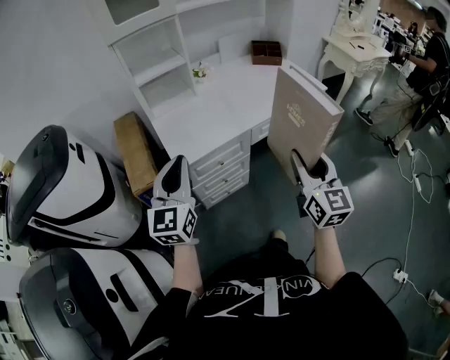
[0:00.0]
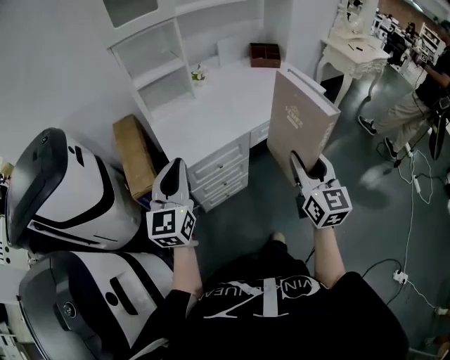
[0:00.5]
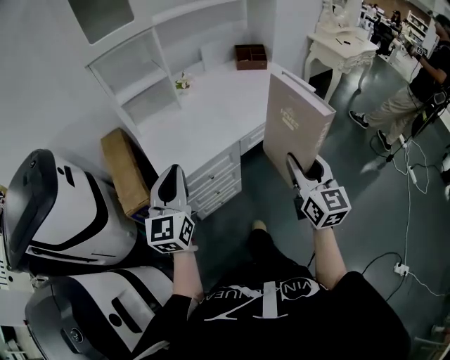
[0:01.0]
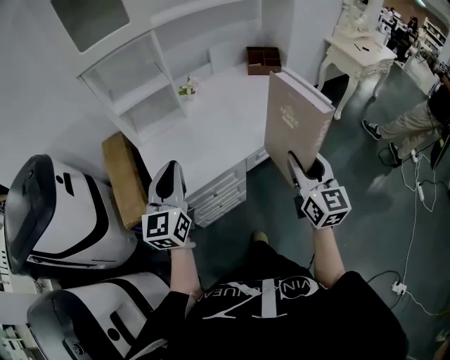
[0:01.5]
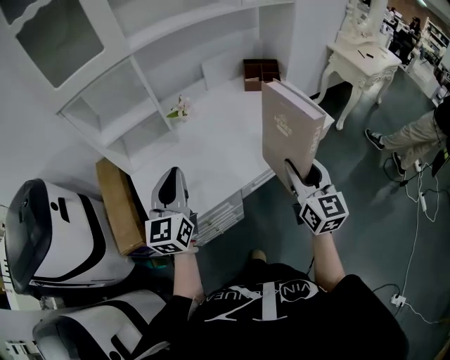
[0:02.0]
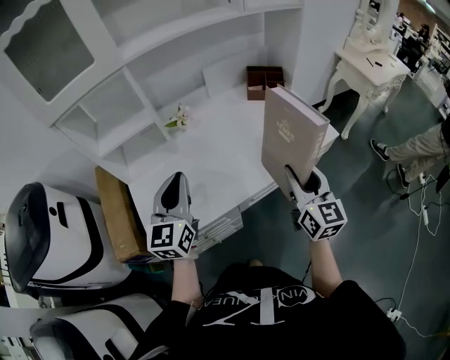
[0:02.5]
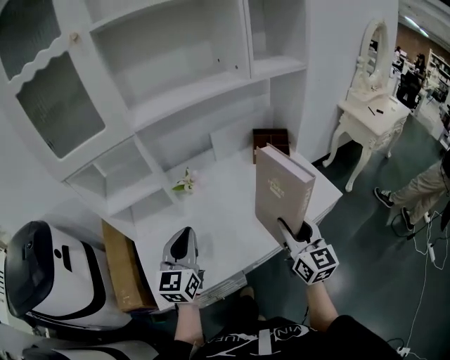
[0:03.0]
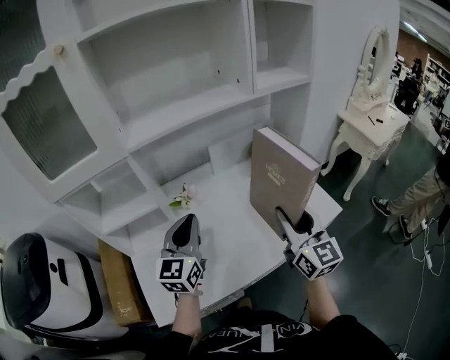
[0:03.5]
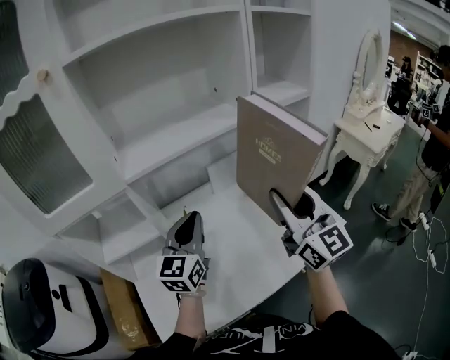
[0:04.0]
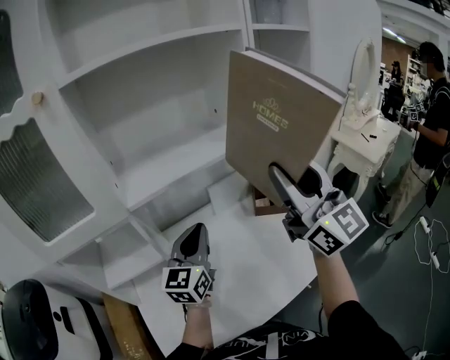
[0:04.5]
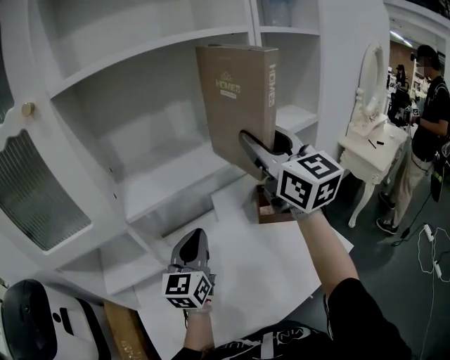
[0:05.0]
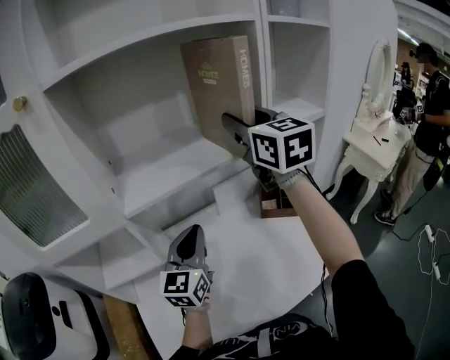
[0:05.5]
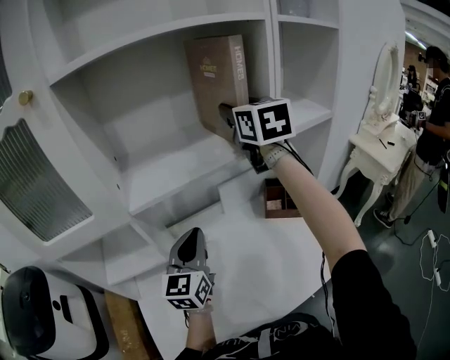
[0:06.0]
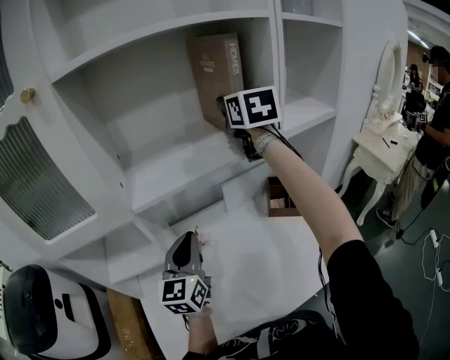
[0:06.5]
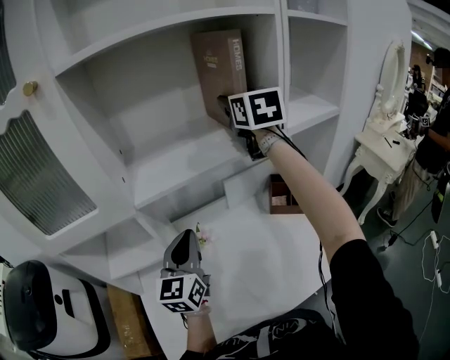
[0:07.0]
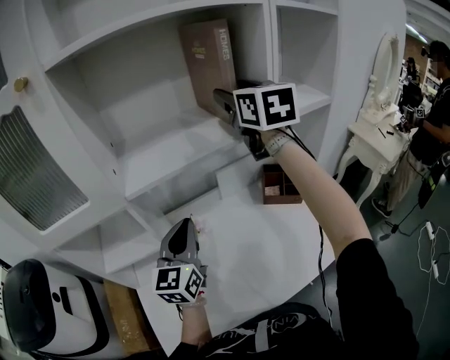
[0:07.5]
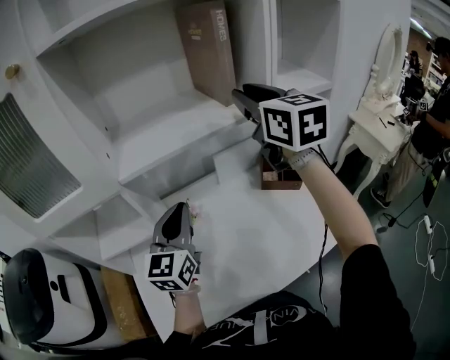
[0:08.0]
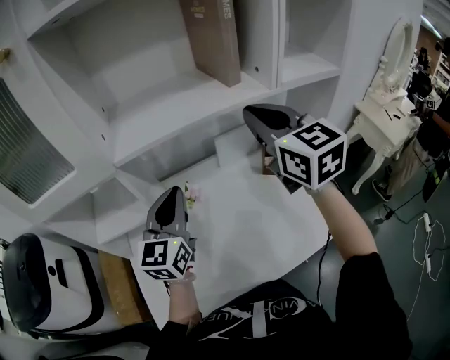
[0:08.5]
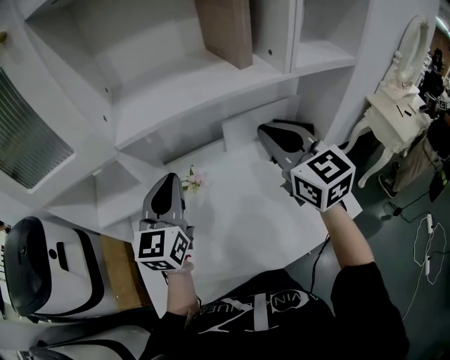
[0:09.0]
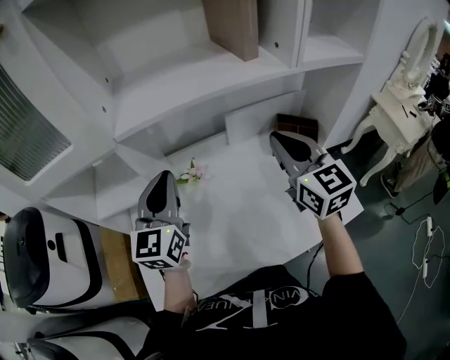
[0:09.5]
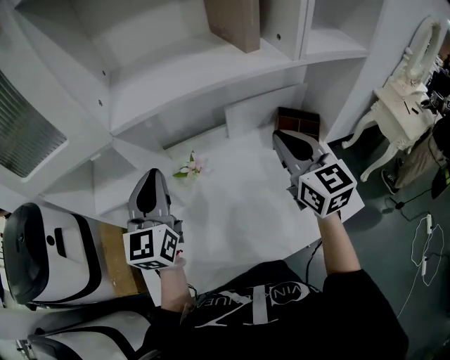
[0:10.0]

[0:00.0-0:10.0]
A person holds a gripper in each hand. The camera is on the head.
0:00.0 to 0:02.0: Both grippers move forward, some 30 cm.
0:02.0 to 0:04.0: The right gripper is displaced forward and upward by some 35 cm, and rotates some 20 degrees, while the left gripper is displaced forward by some 30 cm.
0:04.0 to 0:06.0: The left gripper is displaced forward by some 5 cm. The right gripper travels forward and upward by roughly 30 cm, and turns by about 20 degrees.
0:06.0 to 0:08.0: The right gripper moves backward, roughly 5 cm.
0:08.0 to 0:10.0: The left gripper moves to the left, some 5 cm, while the right gripper heads downward, covering some 20 cm, and closes.

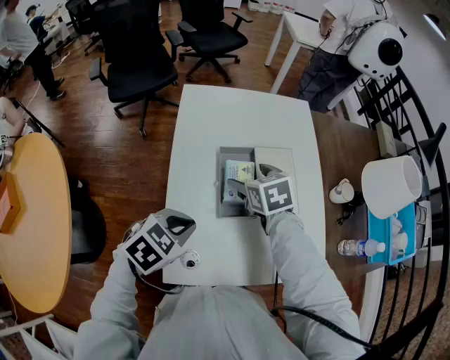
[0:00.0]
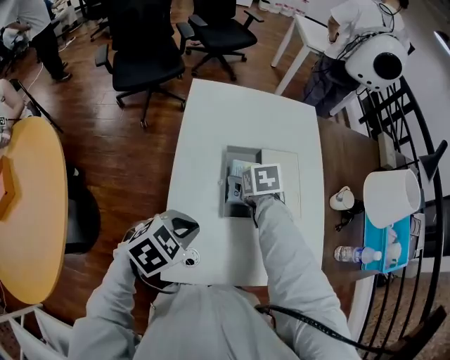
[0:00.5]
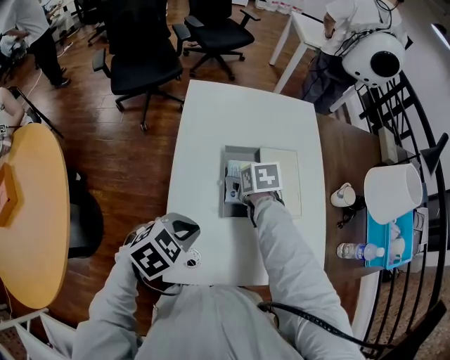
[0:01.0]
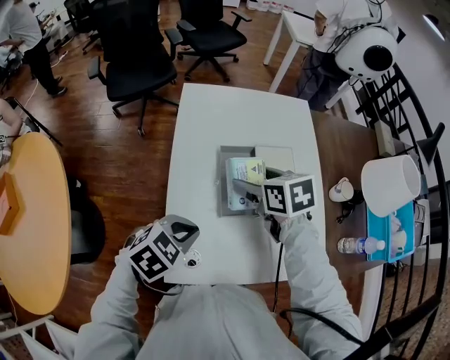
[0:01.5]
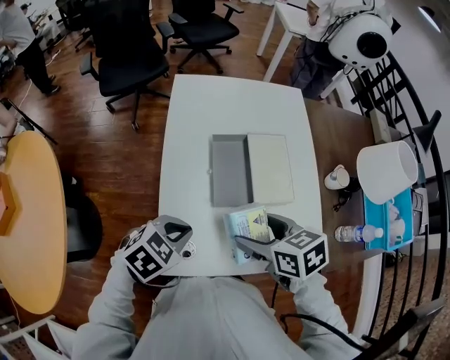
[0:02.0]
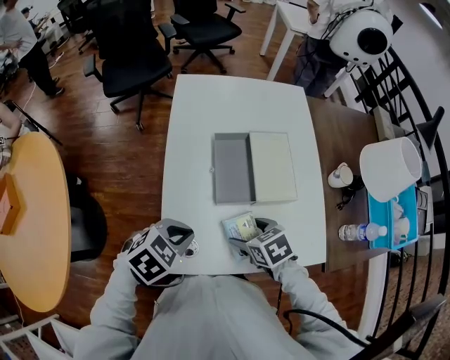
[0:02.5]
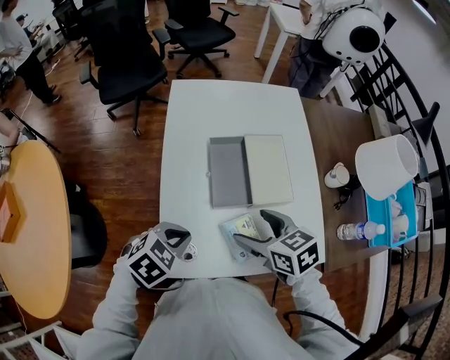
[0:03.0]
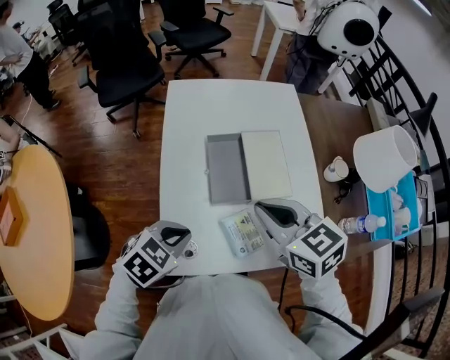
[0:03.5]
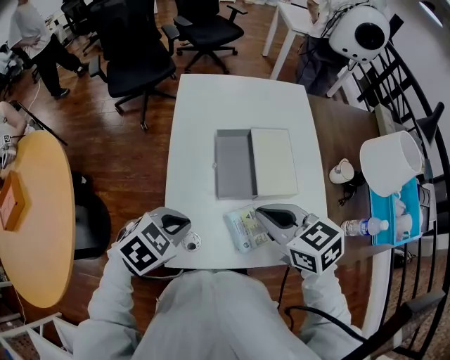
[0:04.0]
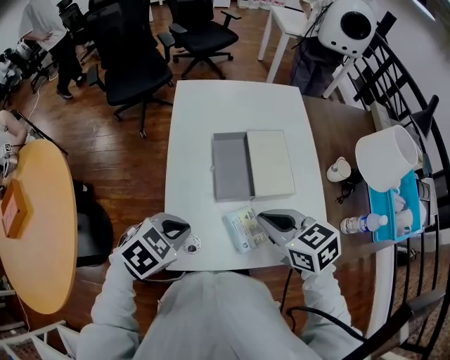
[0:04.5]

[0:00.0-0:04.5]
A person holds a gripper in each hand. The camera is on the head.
0:00.0 to 0:02.0: The right gripper moves backward, about 15 cm.
0:02.0 to 0:04.5: The right gripper moves up and down over some 20 cm, changing direction 2 times, and closes its fingers.

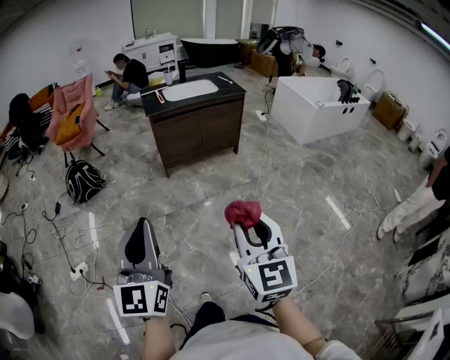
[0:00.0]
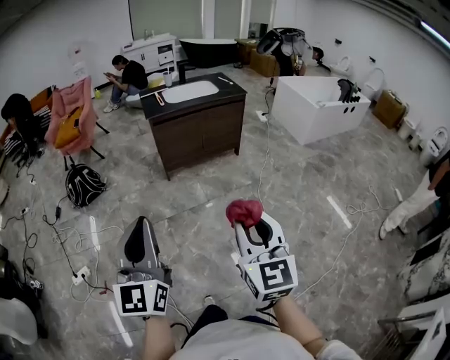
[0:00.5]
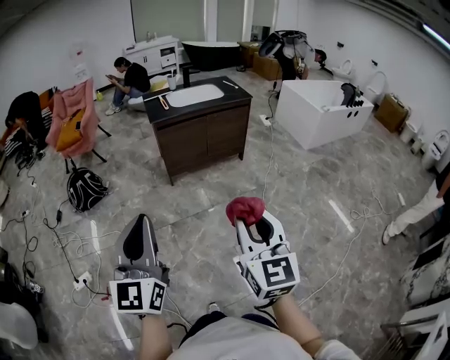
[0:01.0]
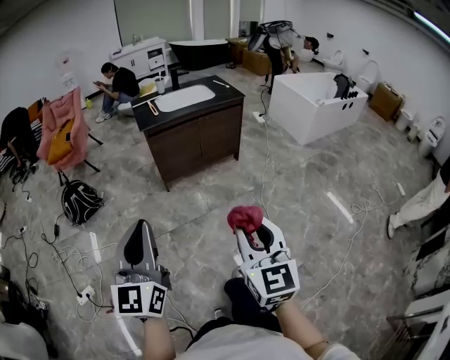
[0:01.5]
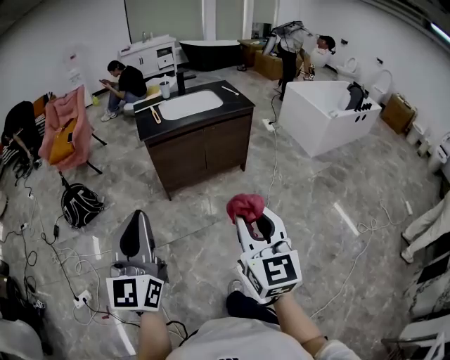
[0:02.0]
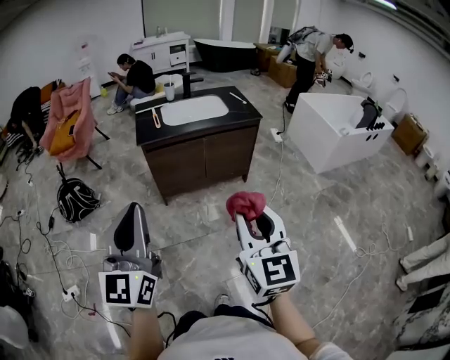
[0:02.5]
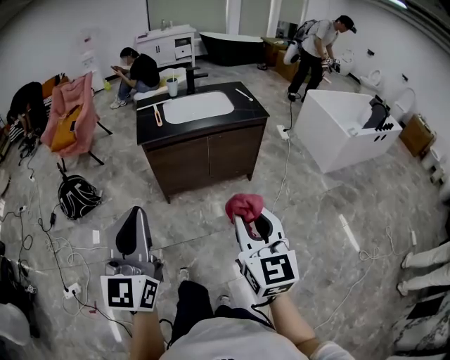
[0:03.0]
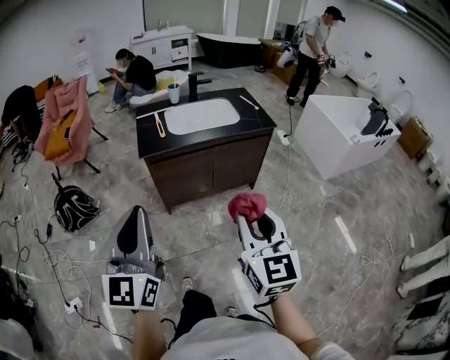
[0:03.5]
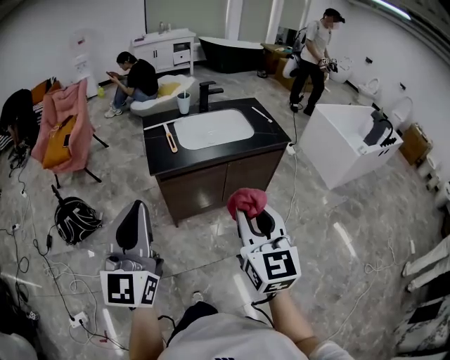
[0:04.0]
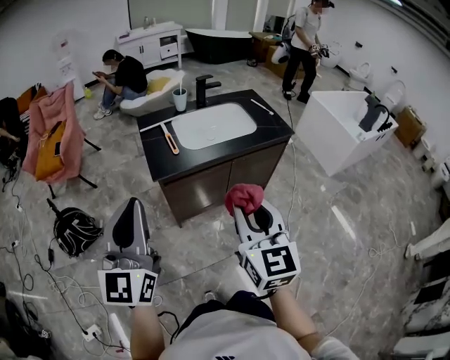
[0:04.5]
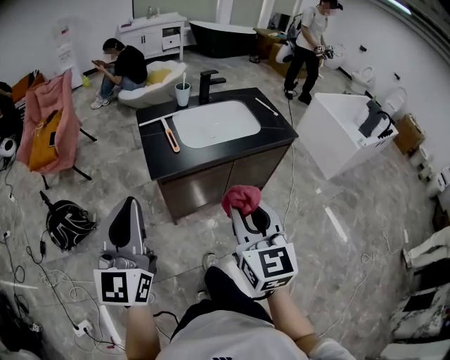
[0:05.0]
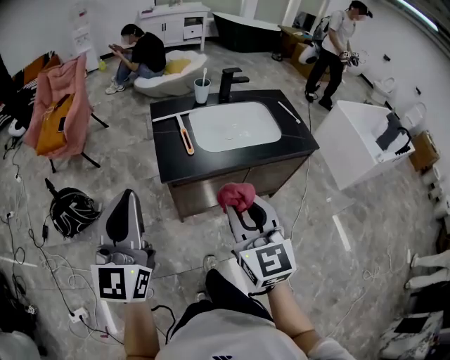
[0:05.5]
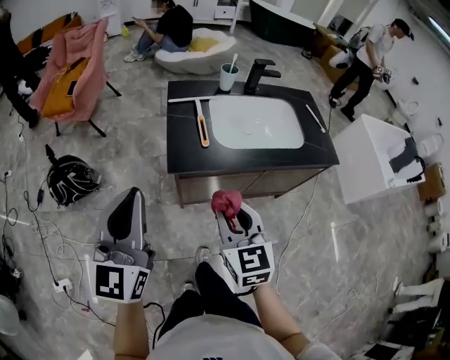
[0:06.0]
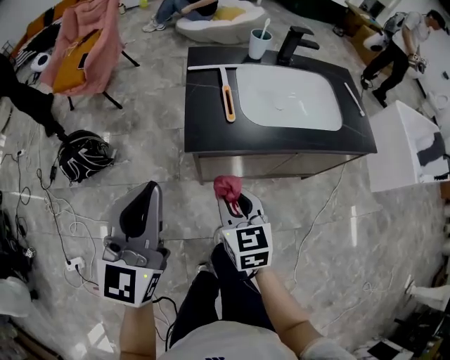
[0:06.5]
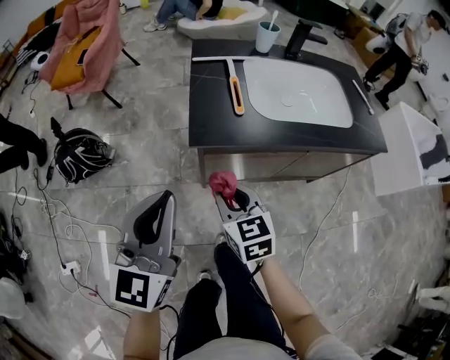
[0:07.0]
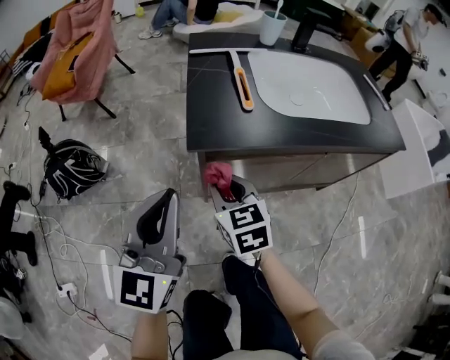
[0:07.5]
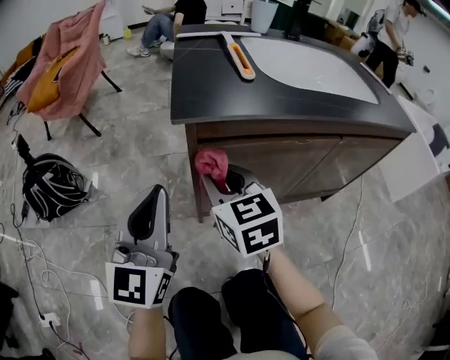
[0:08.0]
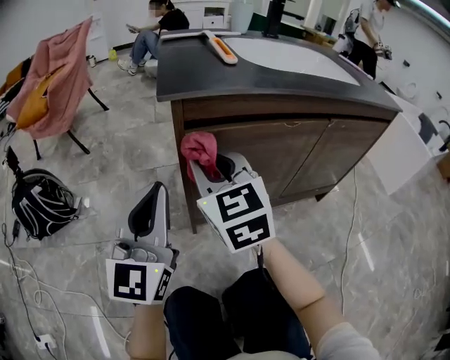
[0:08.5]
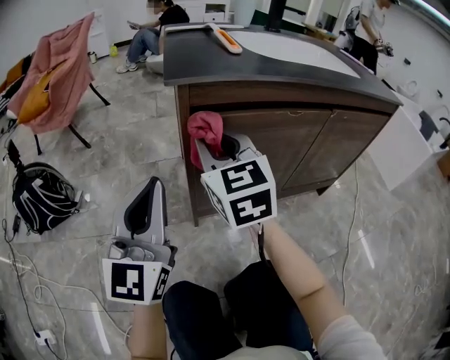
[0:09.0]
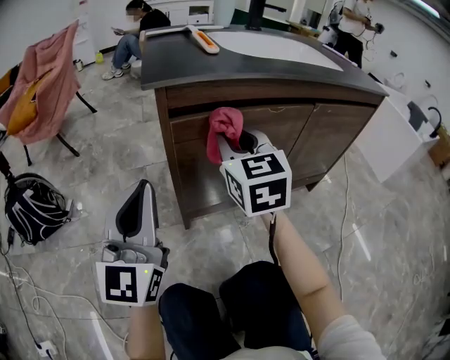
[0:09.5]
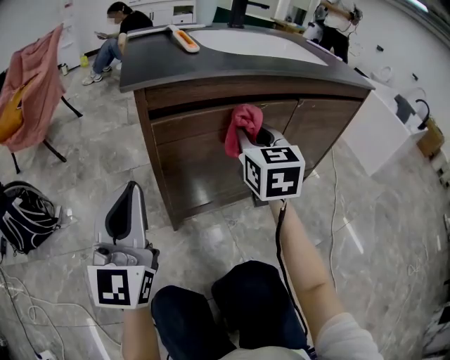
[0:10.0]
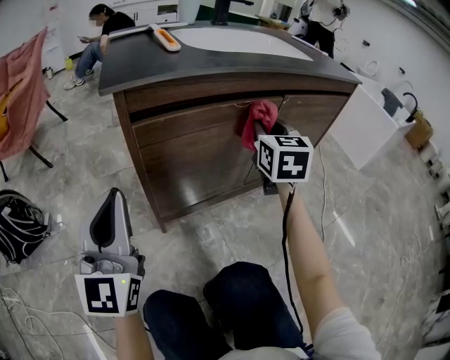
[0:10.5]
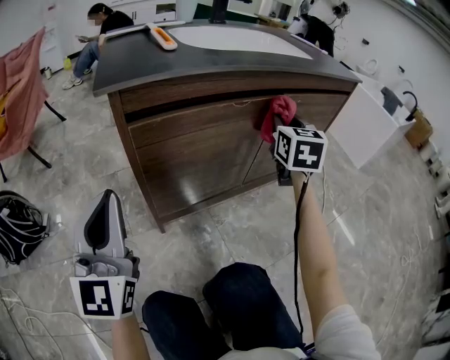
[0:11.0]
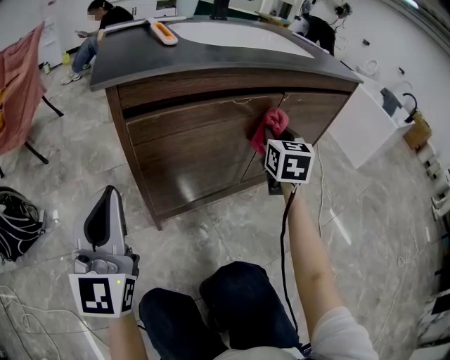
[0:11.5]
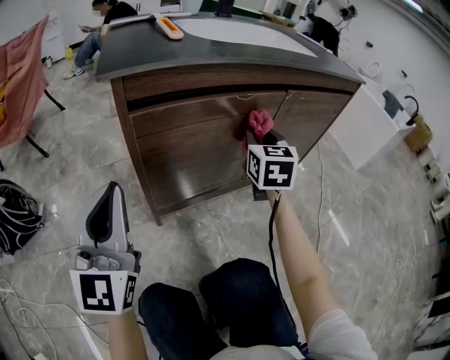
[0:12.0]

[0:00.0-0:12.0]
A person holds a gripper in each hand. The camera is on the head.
0:00.0 to 0:02.0: Both grippers travel together forward, some 25 cm.
0:02.0 to 0:04.0: The two grippers go about 35 cm forward.
0:04.0 to 0:06.0: The right gripper heads forward, downward and to the left, covering about 30 cm, and swivels roughly 20 degrees; the left gripper moves forward and to the left, about 20 cm.
0:06.0 to 0:08.0: The left gripper heads downward, covering some 40 cm. Meanwhile the right gripper travels downward and forward by approximately 35 cm.
0:08.0 to 0:10.0: The left gripper shifts by approximately 5 cm. Meanwhile the right gripper is displaced to the right by roughly 20 cm, and changes its angle by approximately 30 degrees.
0:10.0 to 0:12.0: The right gripper heads to the right and downward, covering approximately 10 cm.
